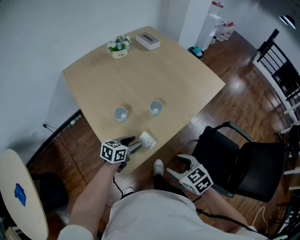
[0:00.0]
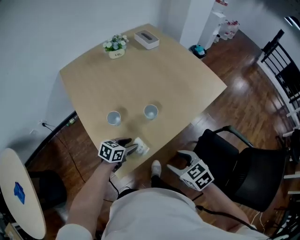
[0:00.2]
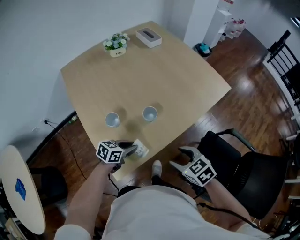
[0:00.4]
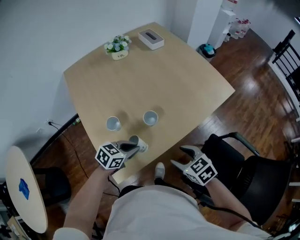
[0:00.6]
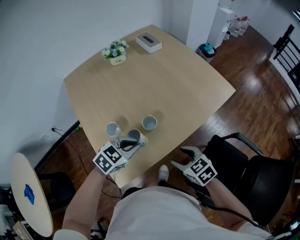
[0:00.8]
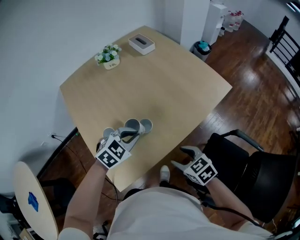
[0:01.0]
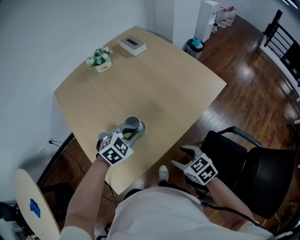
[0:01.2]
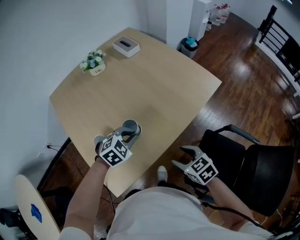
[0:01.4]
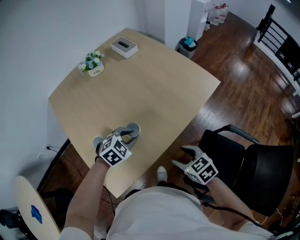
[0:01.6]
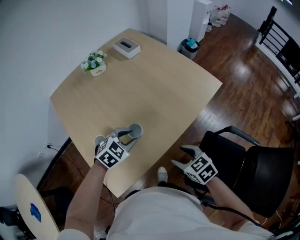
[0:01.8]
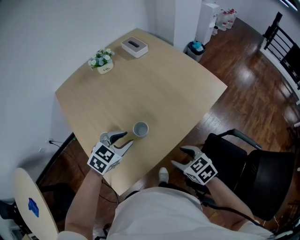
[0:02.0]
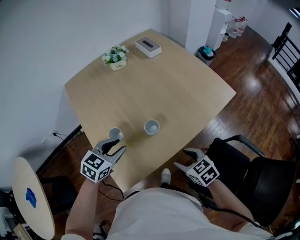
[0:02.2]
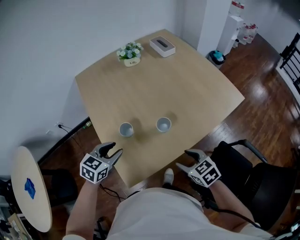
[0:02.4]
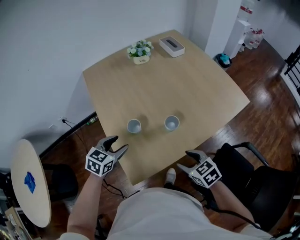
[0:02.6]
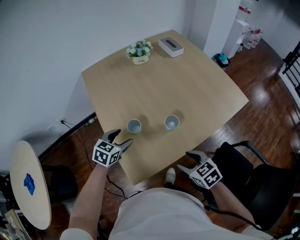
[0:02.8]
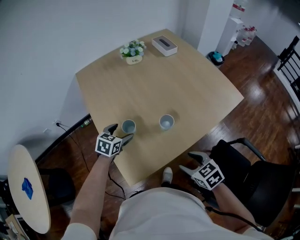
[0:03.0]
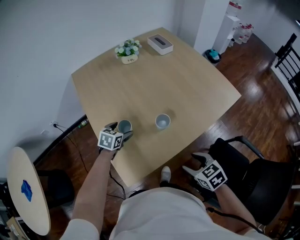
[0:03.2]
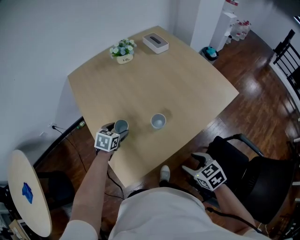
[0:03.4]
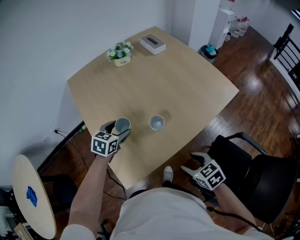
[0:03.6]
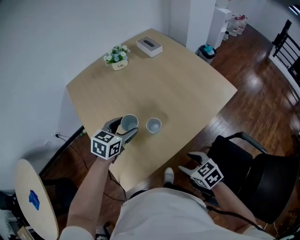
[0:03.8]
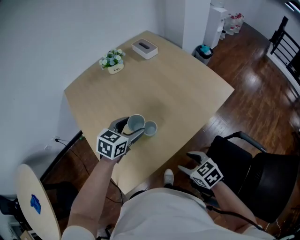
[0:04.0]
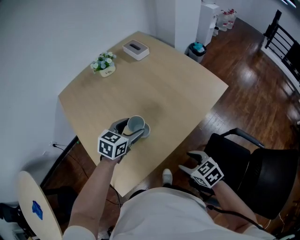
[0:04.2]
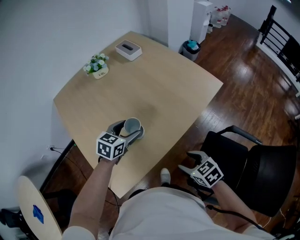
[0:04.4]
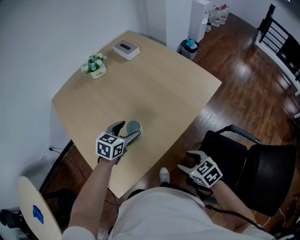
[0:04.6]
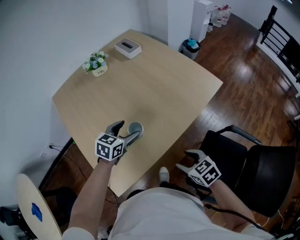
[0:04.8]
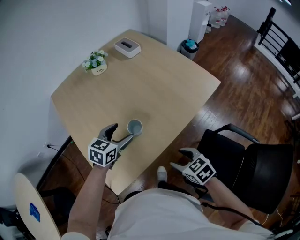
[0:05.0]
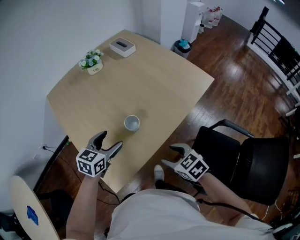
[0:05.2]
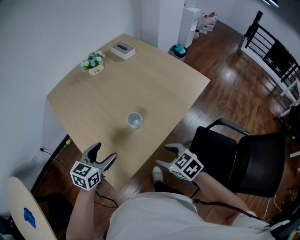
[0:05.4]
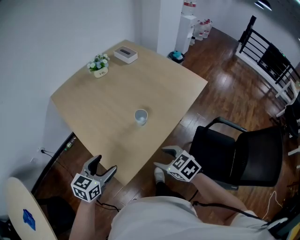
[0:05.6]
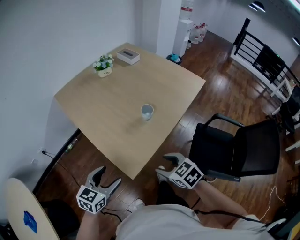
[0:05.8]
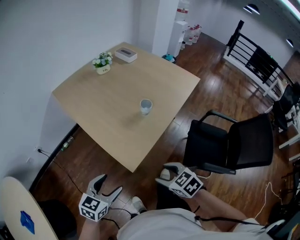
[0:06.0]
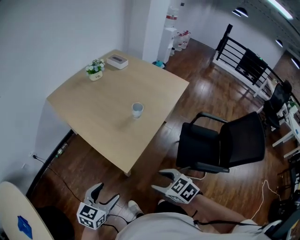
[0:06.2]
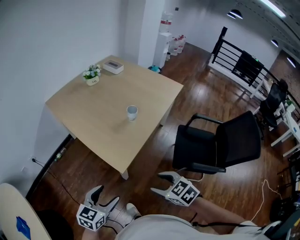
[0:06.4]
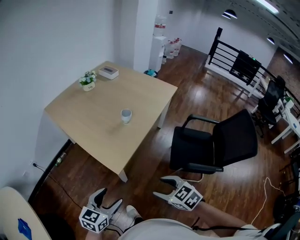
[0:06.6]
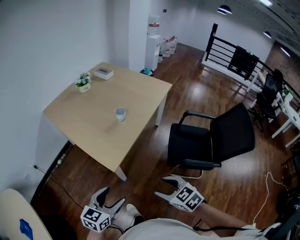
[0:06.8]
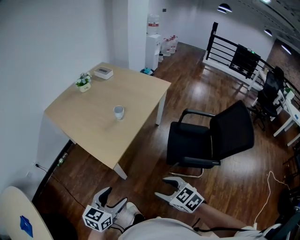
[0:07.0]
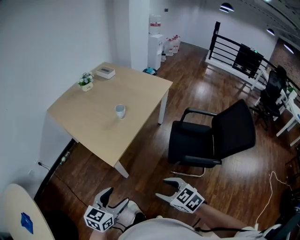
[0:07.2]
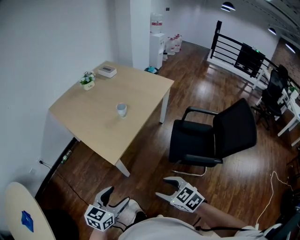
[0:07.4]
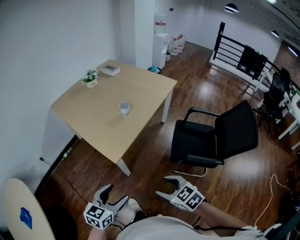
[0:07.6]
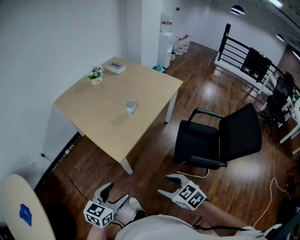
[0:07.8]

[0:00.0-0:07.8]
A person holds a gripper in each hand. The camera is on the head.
0:00.0 to 0:01.6: The grippers both shift forward and to the right by some 20 cm. The left gripper rolls clockwise, seen from behind, by roughly 50 degrees.
0:01.6 to 0:03.2: The right gripper heads to the left, covering some 5 cm. Meanwhile the left gripper travels to the left by some 20 cm, twists approximately 40 degrees counterclockwise, seen from behind, and opens.
0:03.2 to 0:04.6: The right gripper goes roughly 10 cm to the right; the left gripper is displaced to the right and upward by some 20 cm.
0:04.6 to 0:06.2: The left gripper shifts roughly 50 cm backward and to the left. Meanwhile the right gripper heads to the left and backward, covering roughly 40 cm.
0:06.2 to 0:07.8: The grippers both shift backward and to the right by some 15 cm.

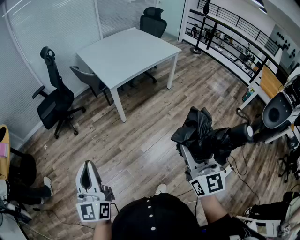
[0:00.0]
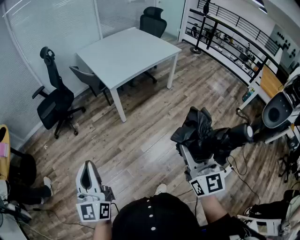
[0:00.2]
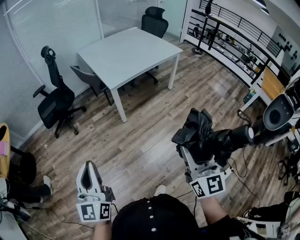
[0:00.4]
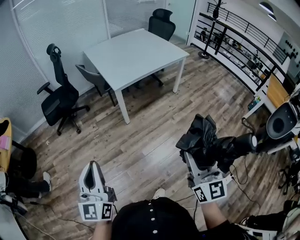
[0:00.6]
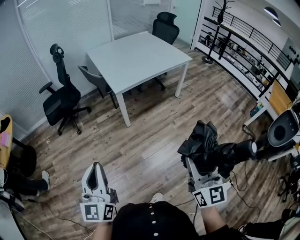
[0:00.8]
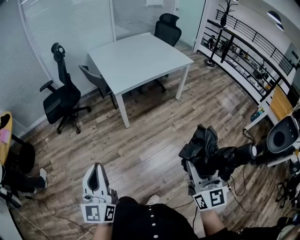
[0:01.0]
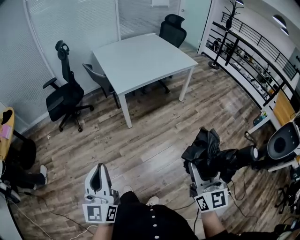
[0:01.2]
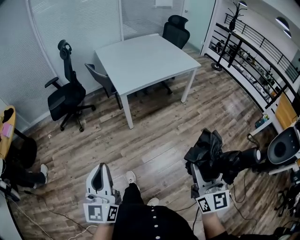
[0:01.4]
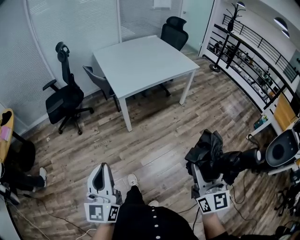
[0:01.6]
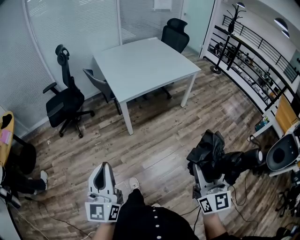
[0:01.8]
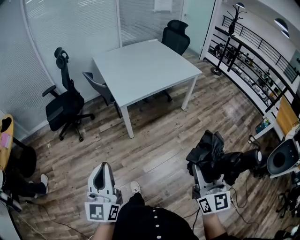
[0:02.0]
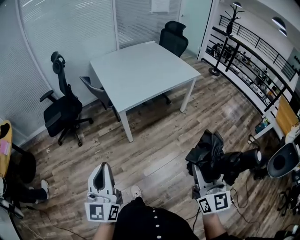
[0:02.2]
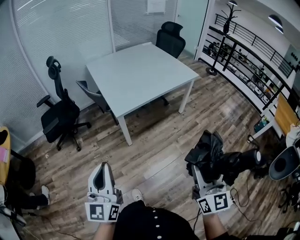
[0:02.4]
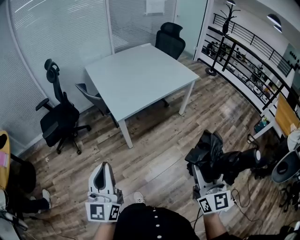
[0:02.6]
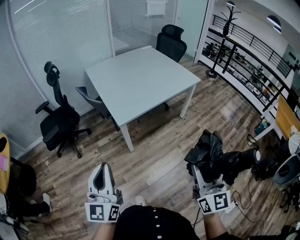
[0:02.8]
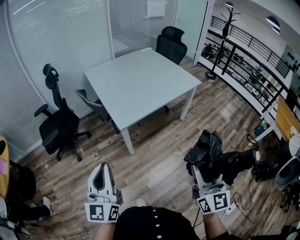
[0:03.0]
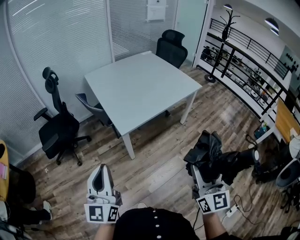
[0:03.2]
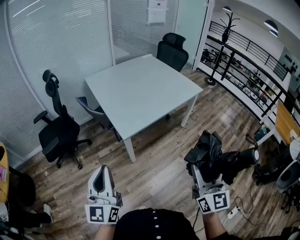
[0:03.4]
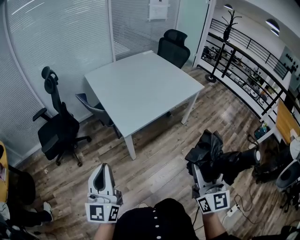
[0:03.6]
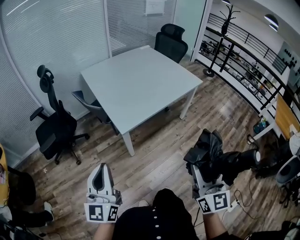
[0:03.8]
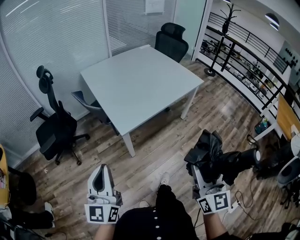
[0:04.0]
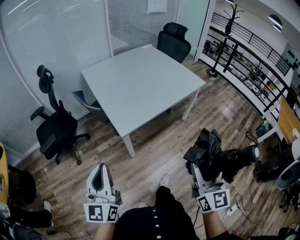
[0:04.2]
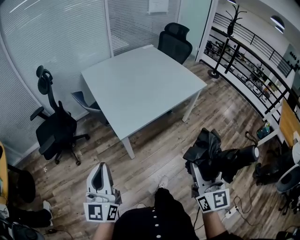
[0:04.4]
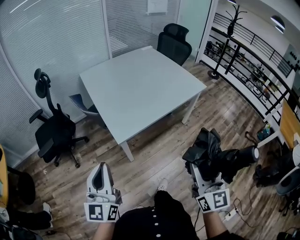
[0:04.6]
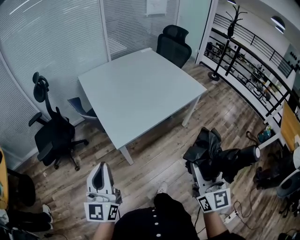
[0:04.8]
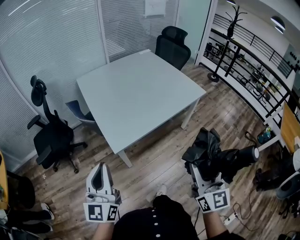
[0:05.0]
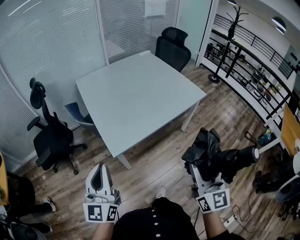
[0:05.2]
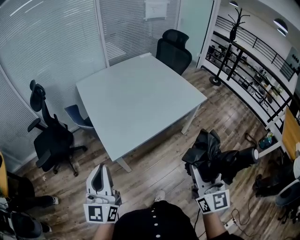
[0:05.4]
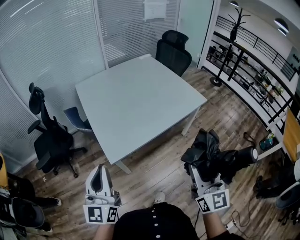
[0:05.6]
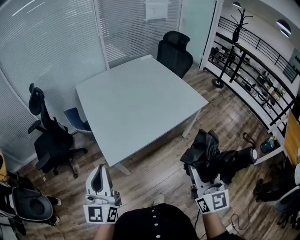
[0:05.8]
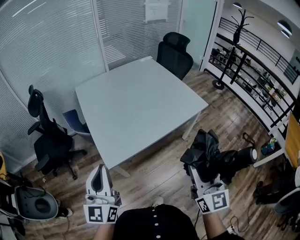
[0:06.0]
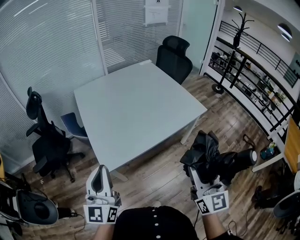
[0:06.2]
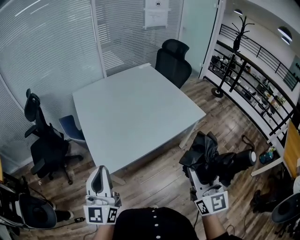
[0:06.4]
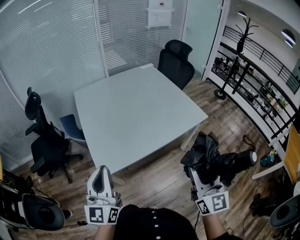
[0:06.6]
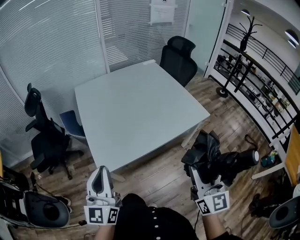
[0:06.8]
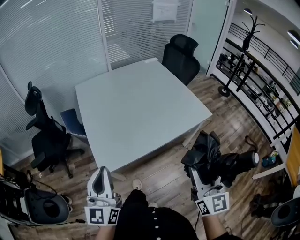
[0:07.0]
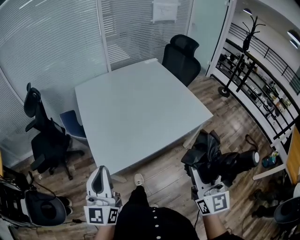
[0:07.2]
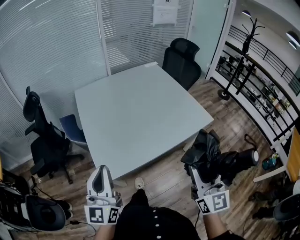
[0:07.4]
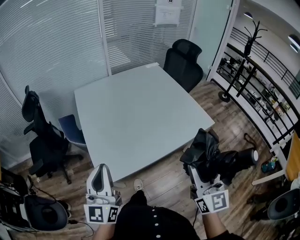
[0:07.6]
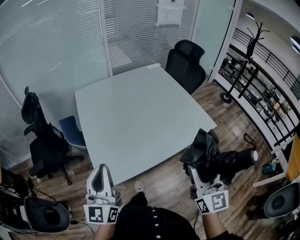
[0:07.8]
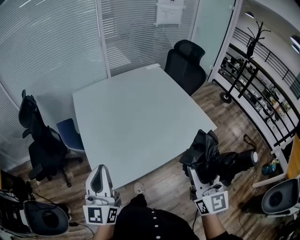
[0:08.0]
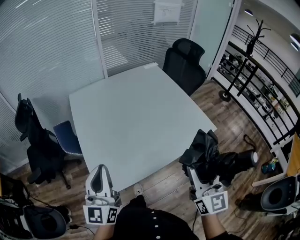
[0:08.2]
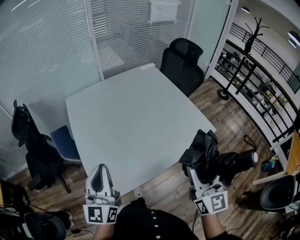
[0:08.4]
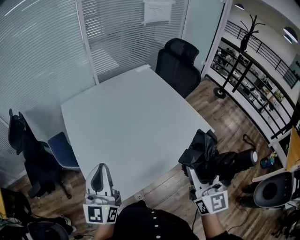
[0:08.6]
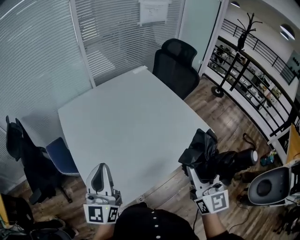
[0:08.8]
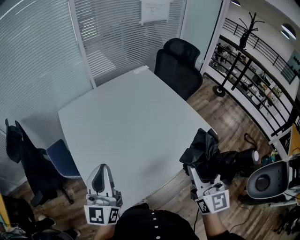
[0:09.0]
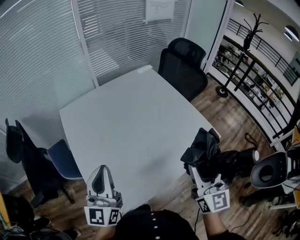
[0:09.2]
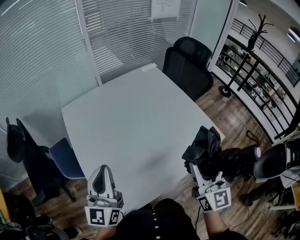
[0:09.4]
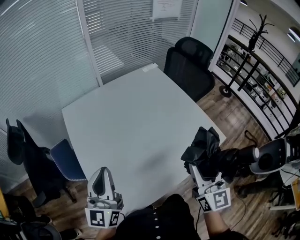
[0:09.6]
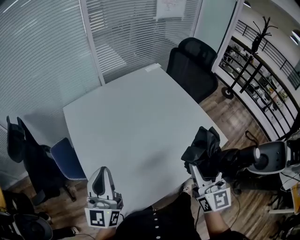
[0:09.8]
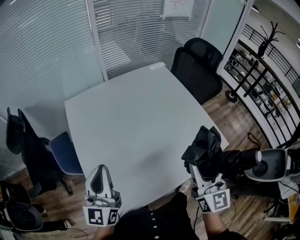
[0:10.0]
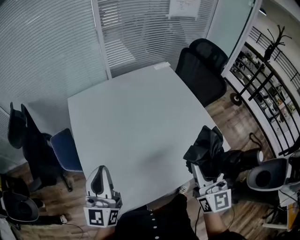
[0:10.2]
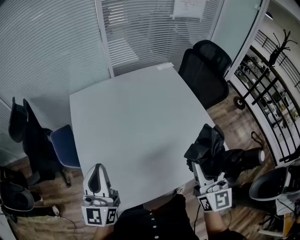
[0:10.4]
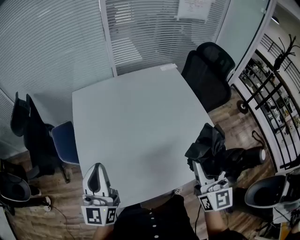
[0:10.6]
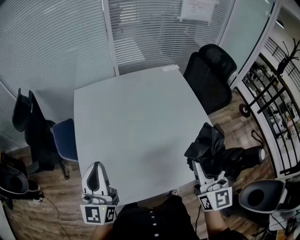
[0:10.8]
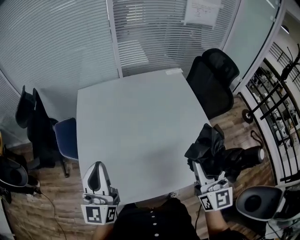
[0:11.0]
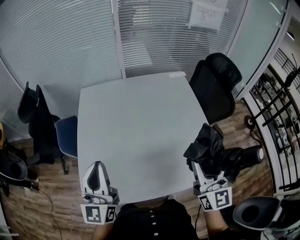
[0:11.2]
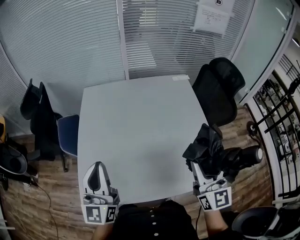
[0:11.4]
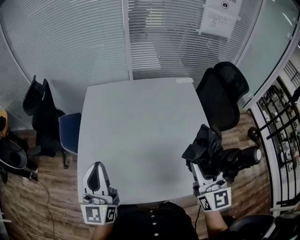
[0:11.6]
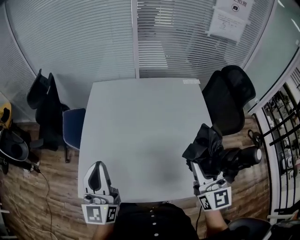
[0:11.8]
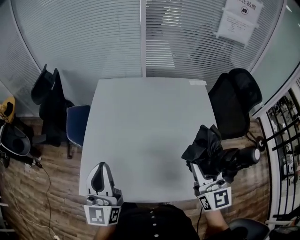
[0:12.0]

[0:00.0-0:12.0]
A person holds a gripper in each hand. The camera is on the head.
0:00.0 to 0:01.6: The left gripper goes roughly 10 cm to the right and forward. The right gripper shifts approximately 10 cm forward and to the right.
0:01.6 to 0:03.0: Both grippers move forward, about 20 cm.
0:03.0 to 0:04.4: The grippers both shift forward by about 10 cm.
0:04.4 to 0:06.0: Both grippers move forward and to the right, some 20 cm.
0:06.0 to 0:07.6: The grippers both shift forward by approximately 10 cm.
0:07.6 to 0:09.0: The two grippers go some 20 cm forward.
0:09.0 to 0:10.4: The right gripper moves forward, about 10 cm.
0:10.4 to 0:12.0: The left gripper moves to the right, some 5 cm, and swivels roughly 20 degrees; the right gripper heads forward and to the right, covering some 10 cm, and rotates about 30 degrees.

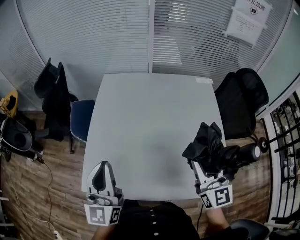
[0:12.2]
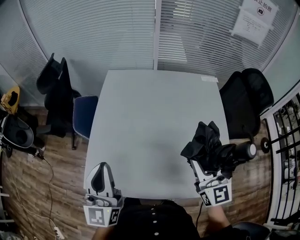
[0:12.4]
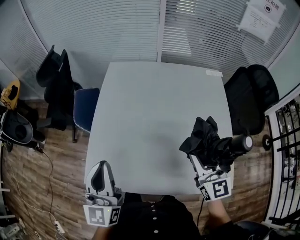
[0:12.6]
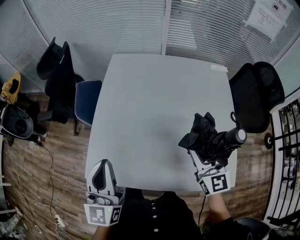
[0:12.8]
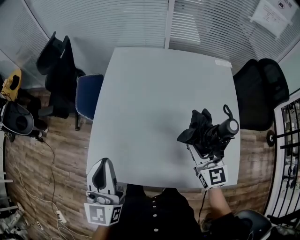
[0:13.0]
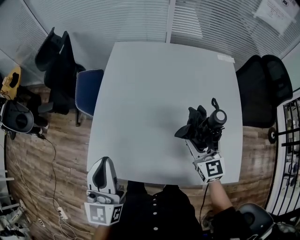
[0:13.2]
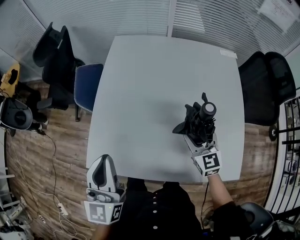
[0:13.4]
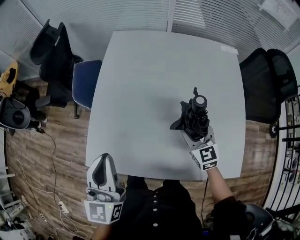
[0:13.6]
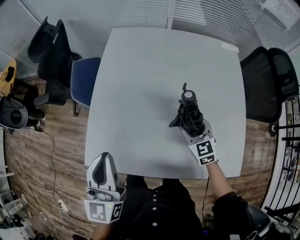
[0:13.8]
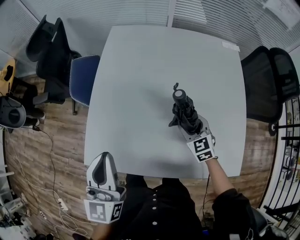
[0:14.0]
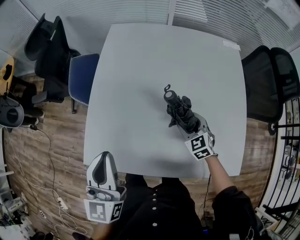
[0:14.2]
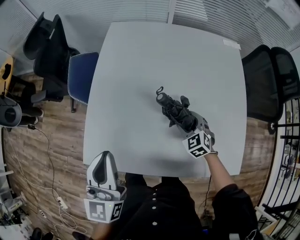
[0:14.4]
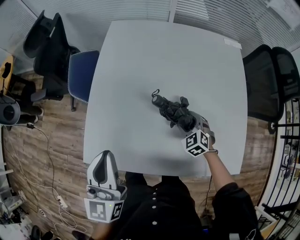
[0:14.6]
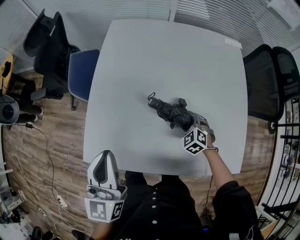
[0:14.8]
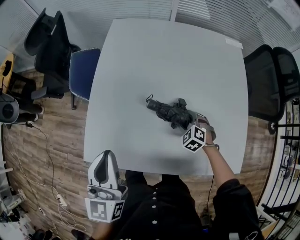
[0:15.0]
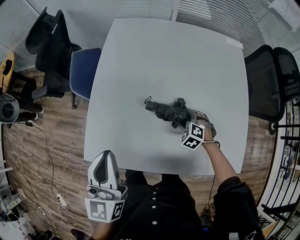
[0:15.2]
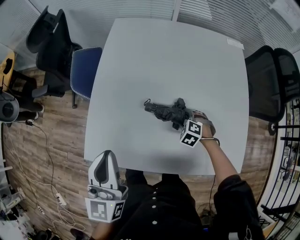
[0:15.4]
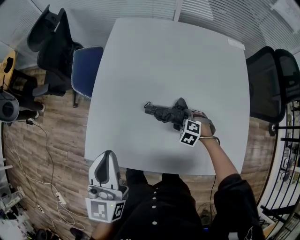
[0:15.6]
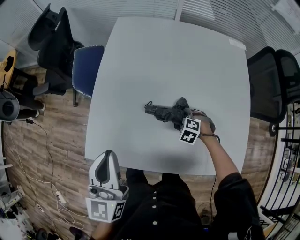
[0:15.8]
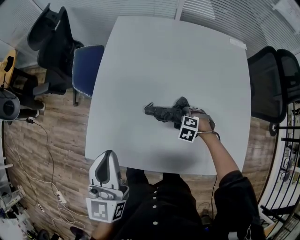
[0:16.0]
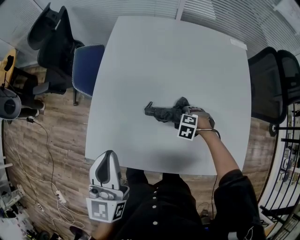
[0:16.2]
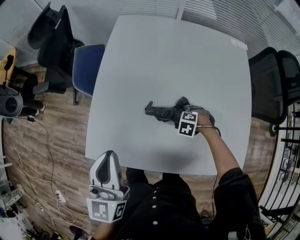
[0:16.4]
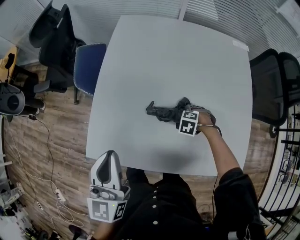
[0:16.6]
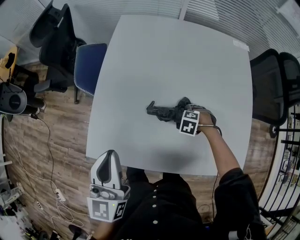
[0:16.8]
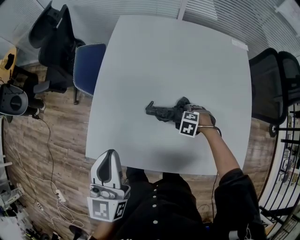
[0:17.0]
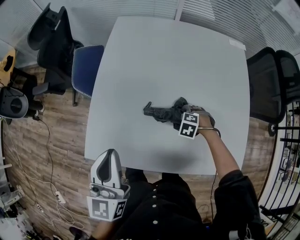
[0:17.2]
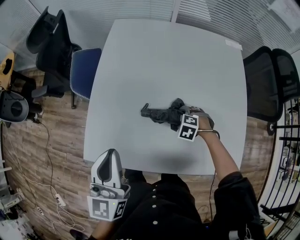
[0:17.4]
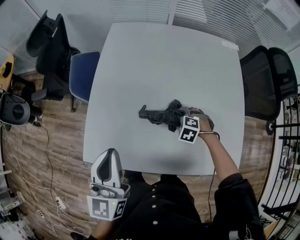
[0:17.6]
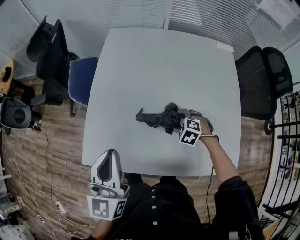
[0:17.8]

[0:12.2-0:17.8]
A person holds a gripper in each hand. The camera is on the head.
0:12.2 to 0:13.6: The right gripper goes about 25 cm downward, forward and to the left, and rotates some 30 degrees. Meanwhile the left gripper heads downward and to the left, covering roughly 10 cm.
0:13.6 to 0:15.0: The right gripper moves downward, some 15 cm, and angles its fingers downward, by roughly 30 degrees.
0:15.0 to 0:16.4: The right gripper turns by about 30 degrees.
0:16.4 to 0:17.8: The right gripper shifts approximately 5 cm upward.
